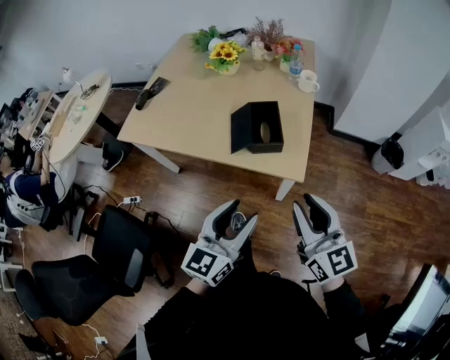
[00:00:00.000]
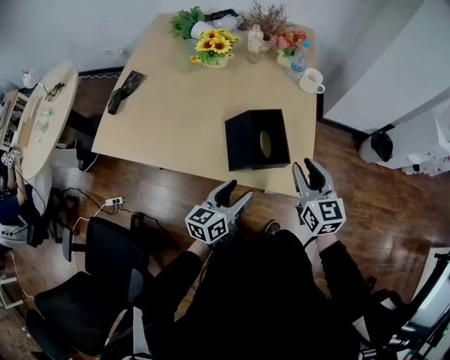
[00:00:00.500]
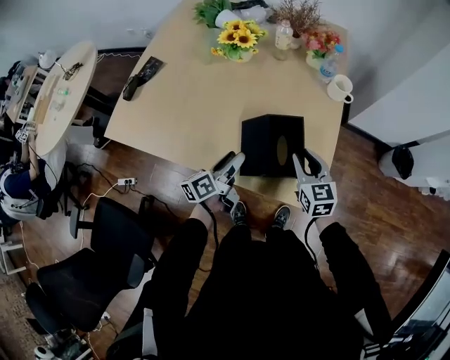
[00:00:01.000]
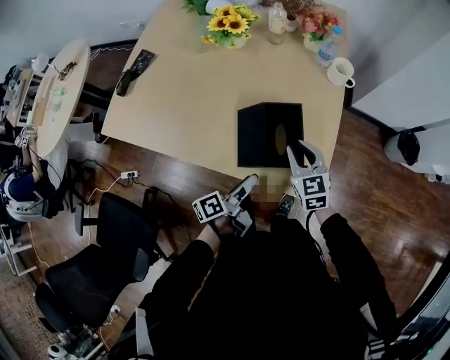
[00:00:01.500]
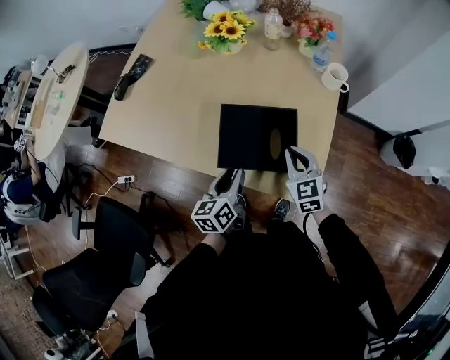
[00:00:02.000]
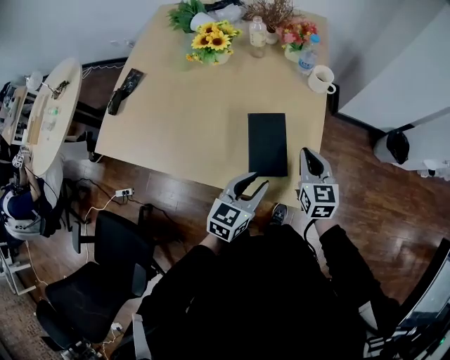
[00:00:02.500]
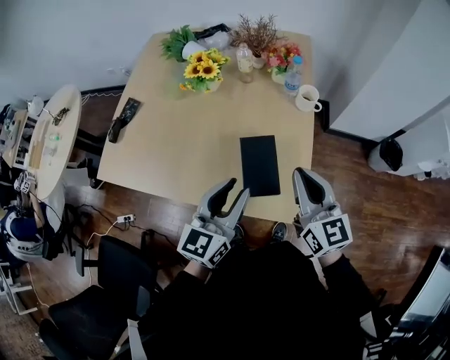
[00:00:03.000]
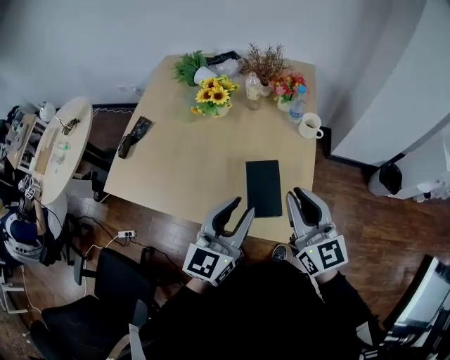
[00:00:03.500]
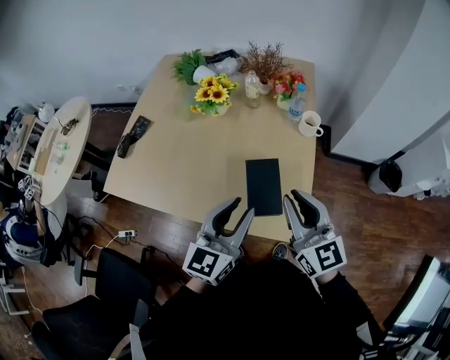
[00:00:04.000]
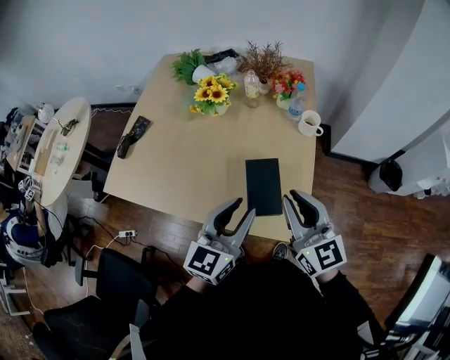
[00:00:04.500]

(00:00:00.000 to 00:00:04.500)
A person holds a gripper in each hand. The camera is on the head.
00:00:00.000 - 00:00:02.000: Both grippers travel together forward and downward, roughly 35 cm. The left gripper swivels about 40 degrees. The right gripper changes its angle by approximately 30 degrees, and closes.
00:00:02.000 - 00:00:04.500: Both grippers travel together upward, some 25 cm. The left gripper rotates approximately 40 degrees. The right gripper turns by some 30 degrees.

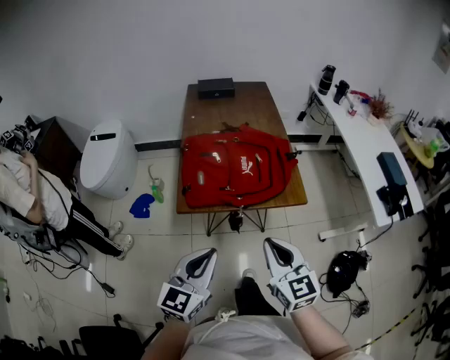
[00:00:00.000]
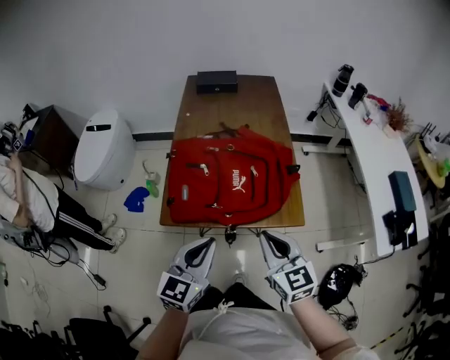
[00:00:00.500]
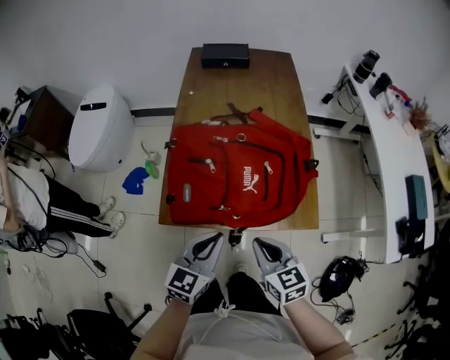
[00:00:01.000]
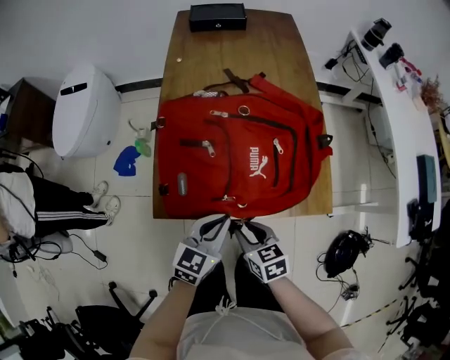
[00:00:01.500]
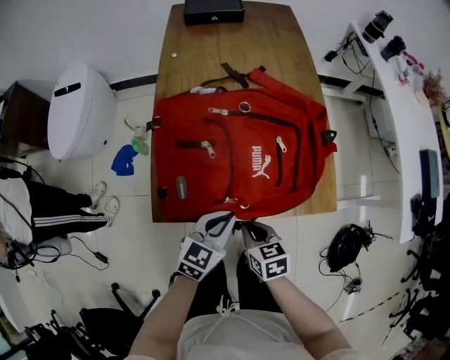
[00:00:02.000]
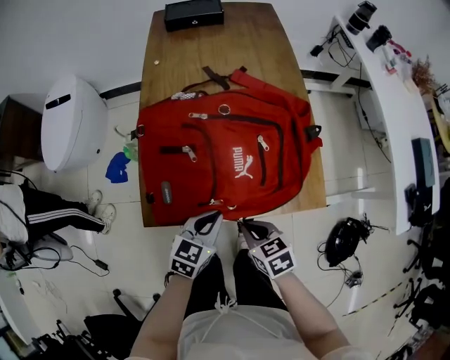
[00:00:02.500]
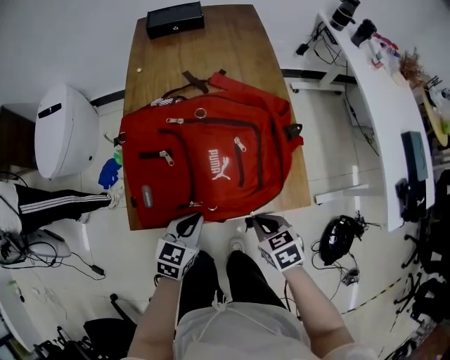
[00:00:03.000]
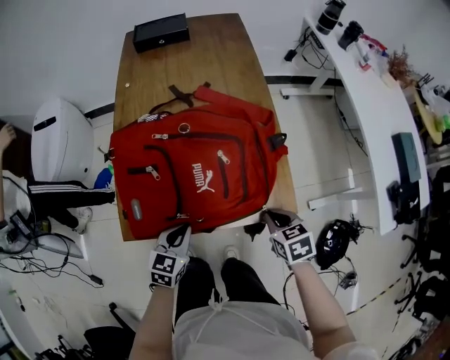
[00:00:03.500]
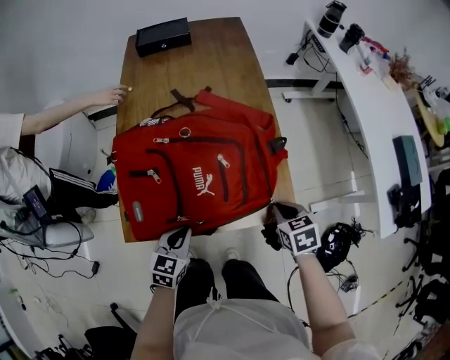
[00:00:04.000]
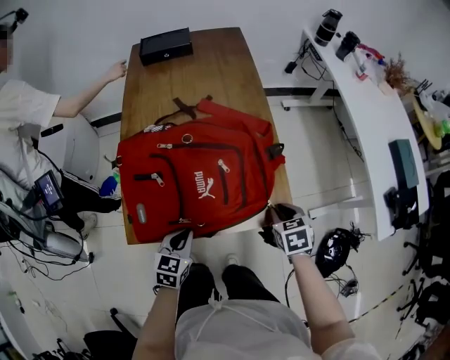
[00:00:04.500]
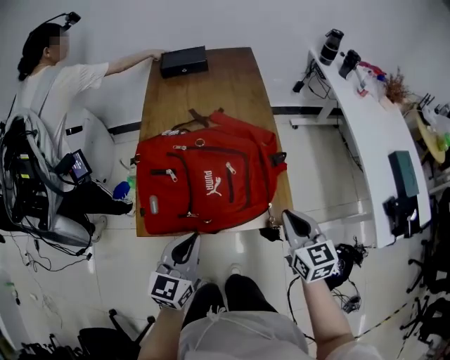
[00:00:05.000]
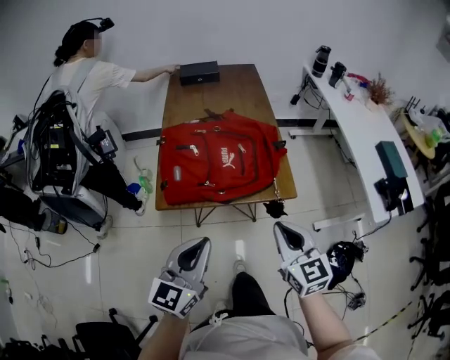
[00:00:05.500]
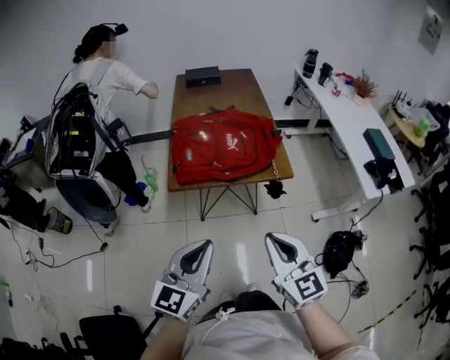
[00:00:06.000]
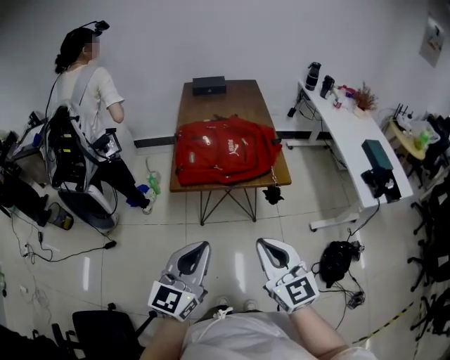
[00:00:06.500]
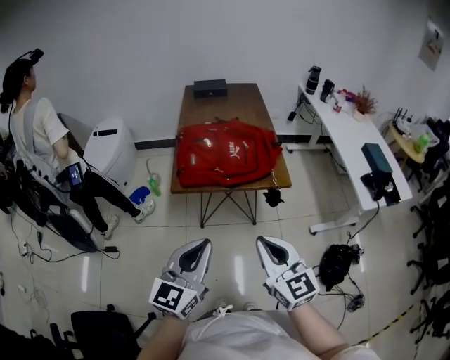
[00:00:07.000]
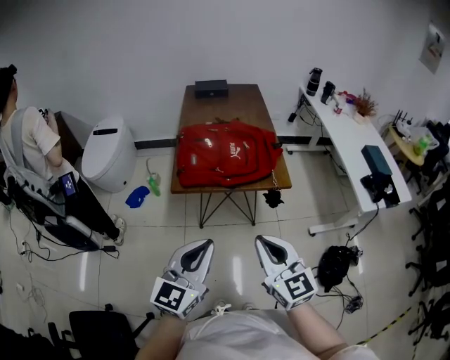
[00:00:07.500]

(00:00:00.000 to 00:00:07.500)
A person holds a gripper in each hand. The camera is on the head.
00:00:00.000 - 00:00:02.000: The left gripper goes some 35 cm forward and downward, and changes its angle by some 20 degrees; the right gripper heads downward and forward, covering about 35 cm, points its fingers approximately 30 degrees further downward, and opens, then closes once more.
00:00:02.000 - 00:00:04.000: The right gripper heads to the right, covering about 25 cm.
00:00:04.000 - 00:00:05.500: Both grippers move upward and backward, about 30 cm. The left gripper angles its fingers upward, by some 30 degrees; the right gripper angles its fingers upward, by about 40 degrees.
00:00:05.500 - 00:00:07.500: The left gripper is displaced backward by about 15 cm. The right gripper shifts approximately 20 cm backward and to the left.

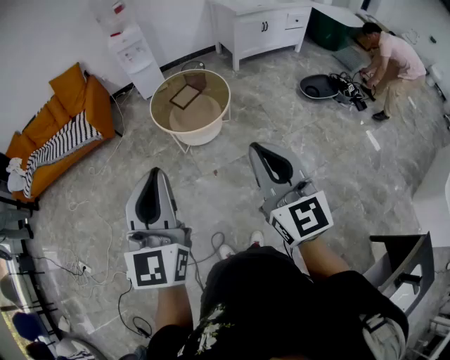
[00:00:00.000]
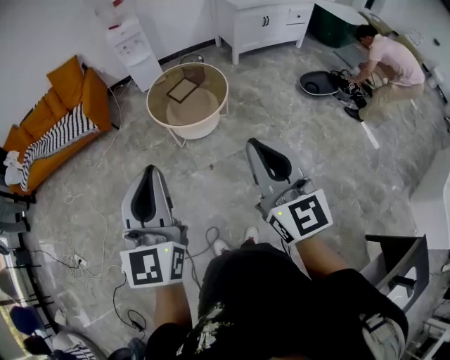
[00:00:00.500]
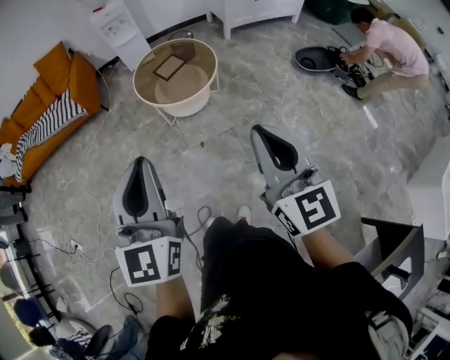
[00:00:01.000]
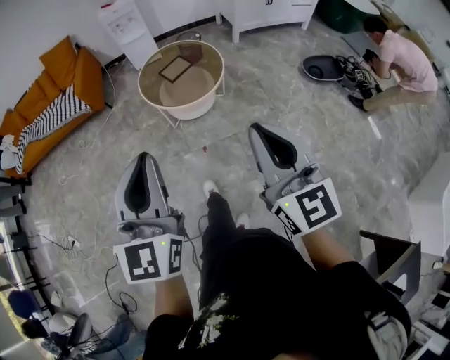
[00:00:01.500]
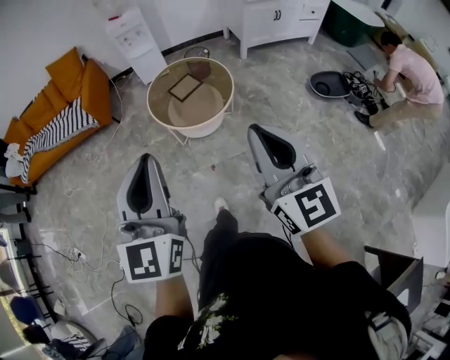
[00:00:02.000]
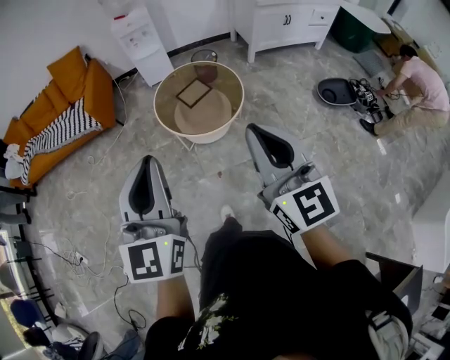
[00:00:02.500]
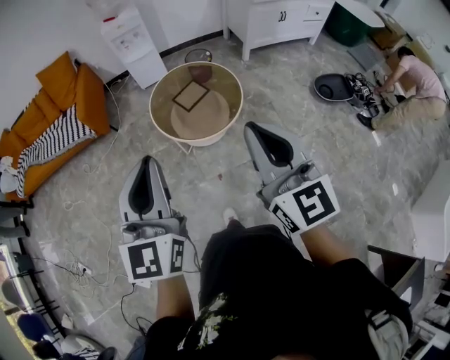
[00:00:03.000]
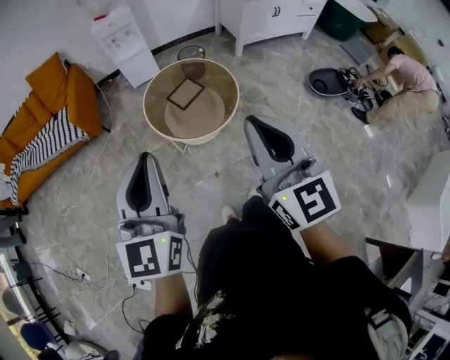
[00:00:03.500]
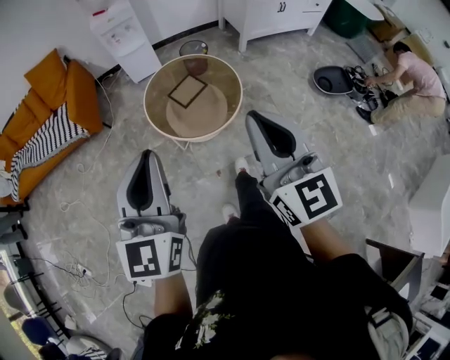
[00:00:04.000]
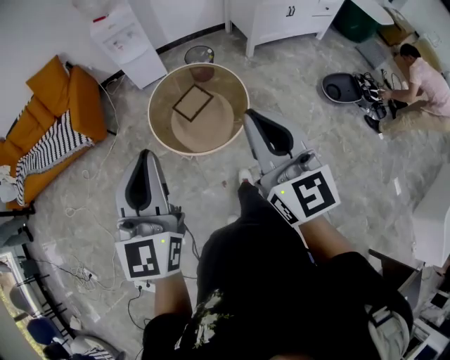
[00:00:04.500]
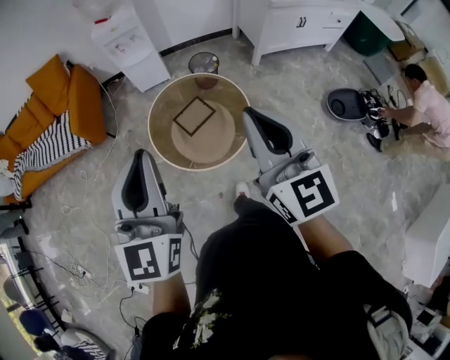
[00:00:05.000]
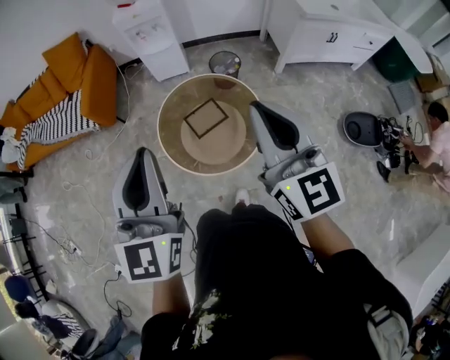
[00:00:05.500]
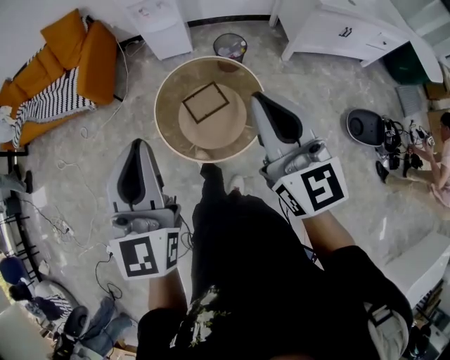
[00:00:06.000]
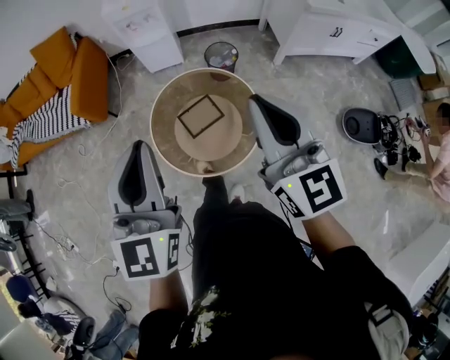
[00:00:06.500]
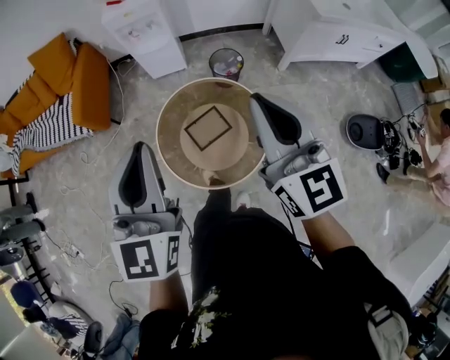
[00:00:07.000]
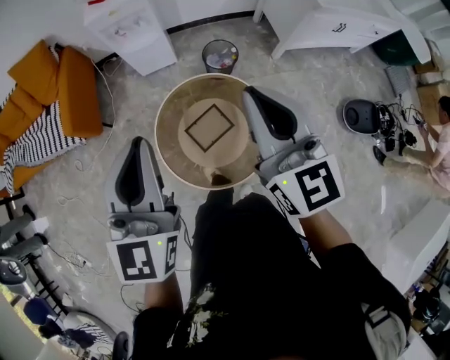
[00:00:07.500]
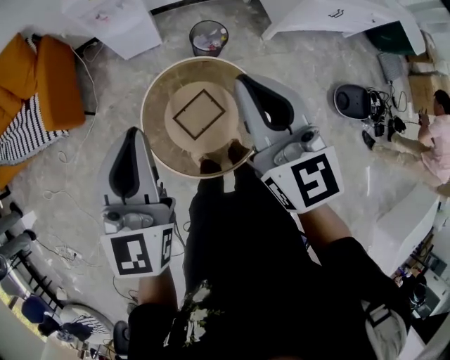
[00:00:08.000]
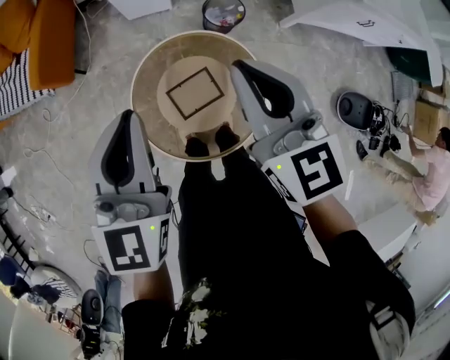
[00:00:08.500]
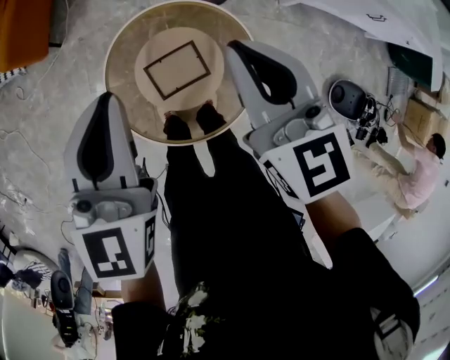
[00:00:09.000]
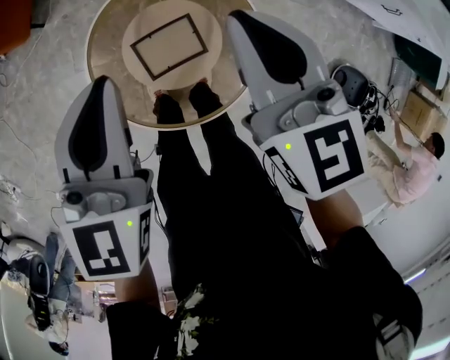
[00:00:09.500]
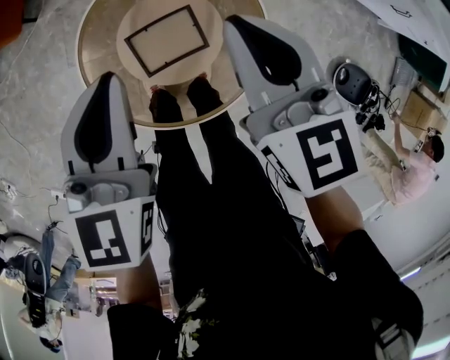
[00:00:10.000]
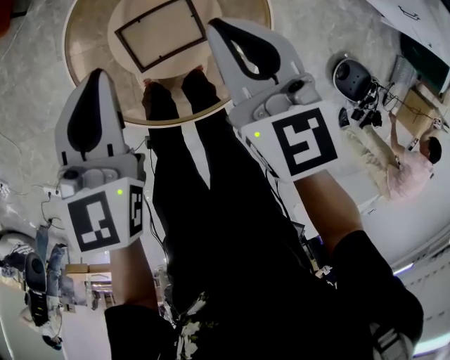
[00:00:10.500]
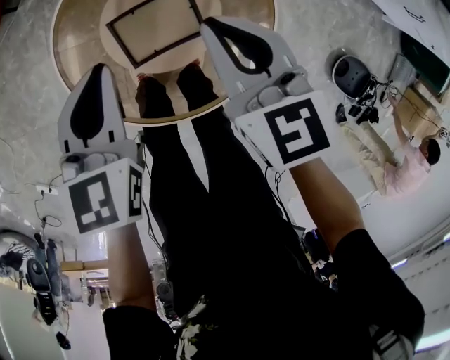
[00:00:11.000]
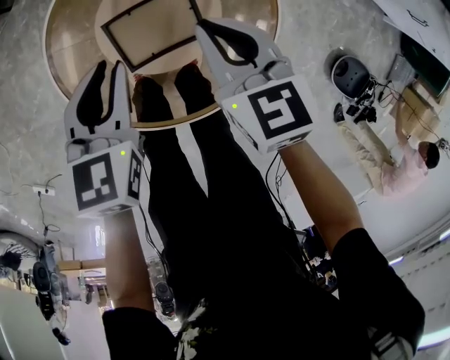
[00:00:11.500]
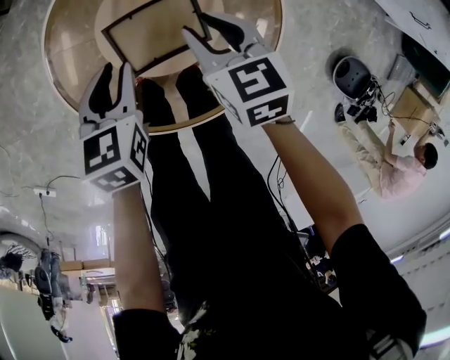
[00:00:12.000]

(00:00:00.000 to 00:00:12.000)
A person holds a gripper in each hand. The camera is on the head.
00:00:00.000 - 00:00:02.000: The grippers both shift forward and to the right by some 15 cm.
00:00:02.000 - 00:00:04.000: Both grippers move forward, roughly 25 cm.
00:00:04.000 - 00:00:06.000: Both grippers travel together forward, approximately 35 cm.
00:00:06.000 - 00:00:08.000: The two grippers go some 30 cm forward.
00:00:08.000 - 00:00:10.000: Both grippers travel together downward, about 35 cm. The right gripper swivels some 30 degrees; the left gripper turns by about 30 degrees.
00:00:10.000 - 00:00:12.000: Both grippers travel together downward, approximately 30 cm. The left gripper rotates roughly 30 degrees, and opens up. Meanwhile the right gripper changes its angle by about 20 degrees, and opens its fingers.

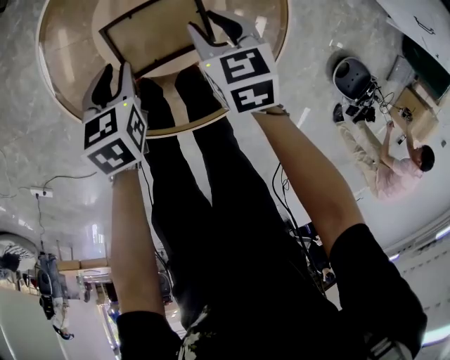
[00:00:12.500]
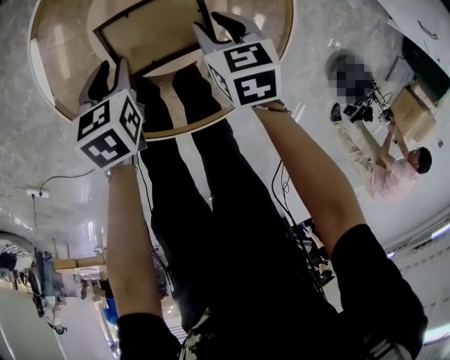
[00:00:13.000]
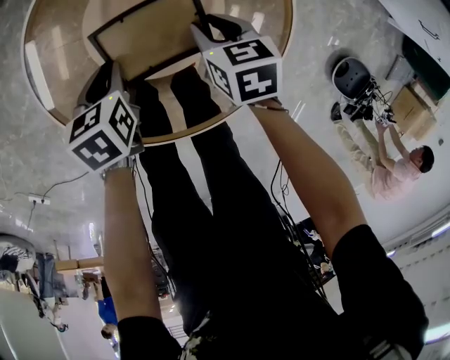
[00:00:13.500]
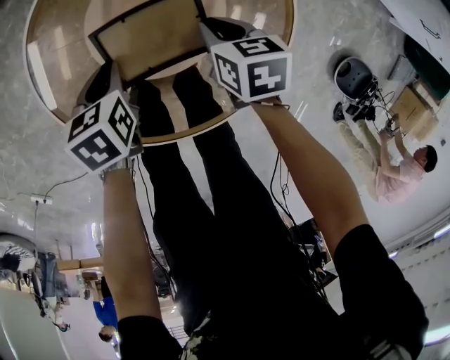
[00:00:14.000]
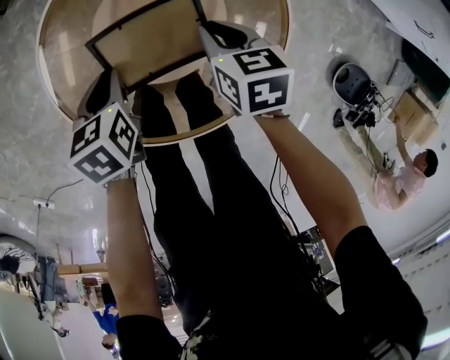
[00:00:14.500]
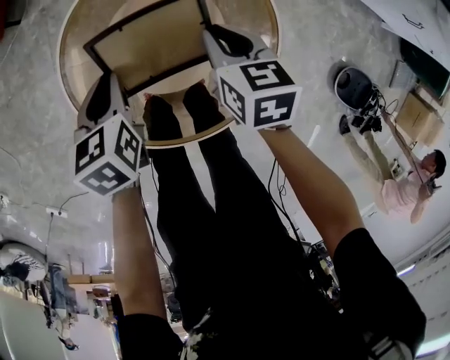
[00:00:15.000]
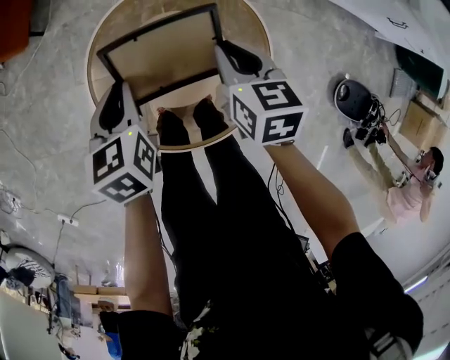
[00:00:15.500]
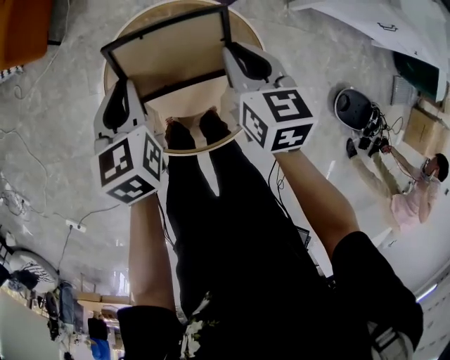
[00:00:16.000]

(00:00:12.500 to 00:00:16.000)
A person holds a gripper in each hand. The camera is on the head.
00:00:12.500 - 00:00:14.500: The right gripper closes its fingers.
00:00:14.500 - 00:00:16.000: The grippers both shift upward by about 30 cm. The left gripper turns by approximately 30 degrees. Meanwhile the right gripper turns by about 30 degrees.
